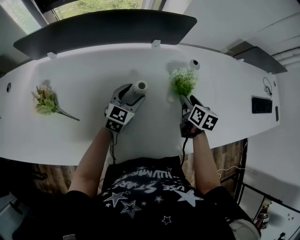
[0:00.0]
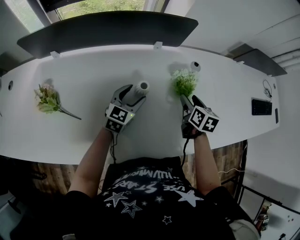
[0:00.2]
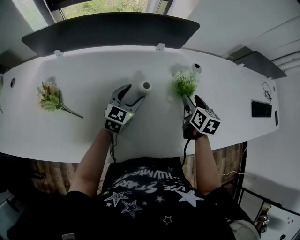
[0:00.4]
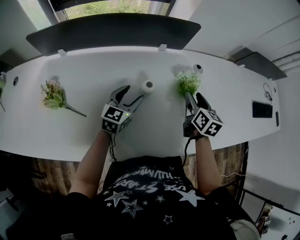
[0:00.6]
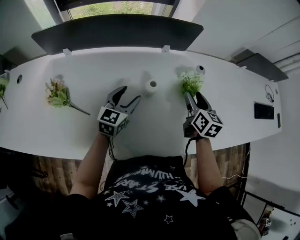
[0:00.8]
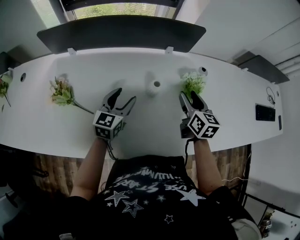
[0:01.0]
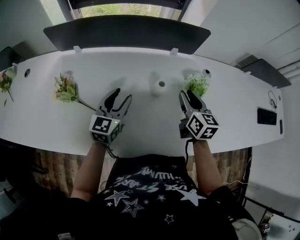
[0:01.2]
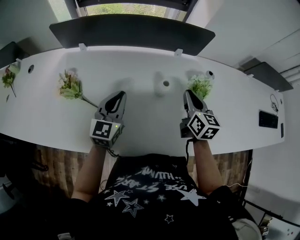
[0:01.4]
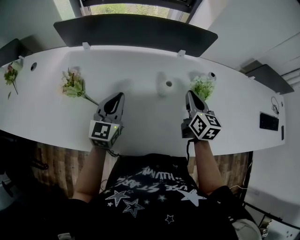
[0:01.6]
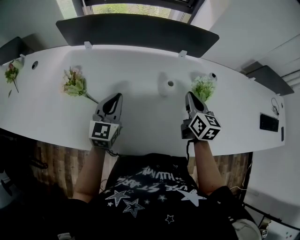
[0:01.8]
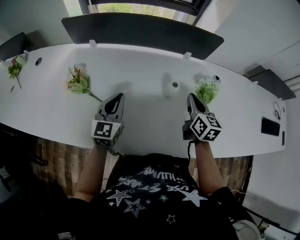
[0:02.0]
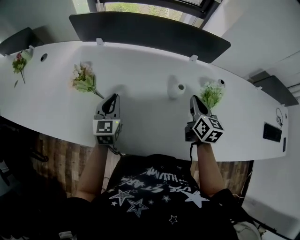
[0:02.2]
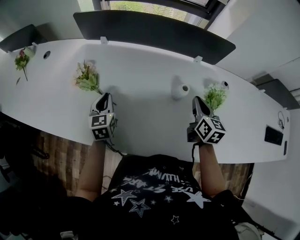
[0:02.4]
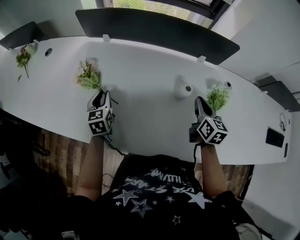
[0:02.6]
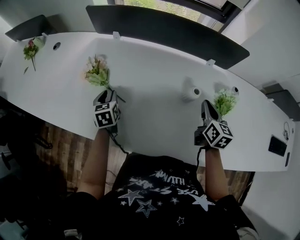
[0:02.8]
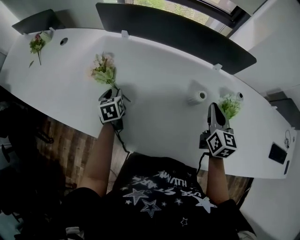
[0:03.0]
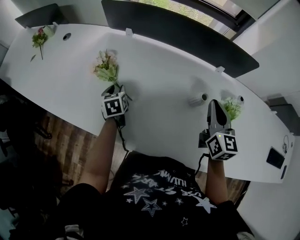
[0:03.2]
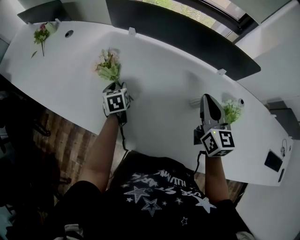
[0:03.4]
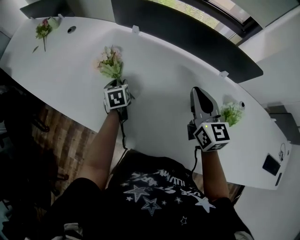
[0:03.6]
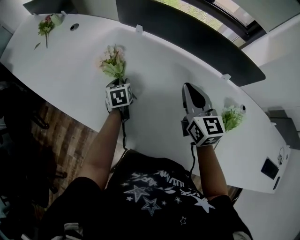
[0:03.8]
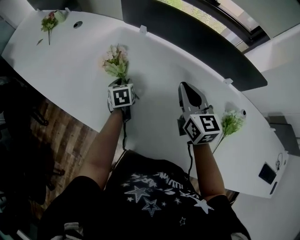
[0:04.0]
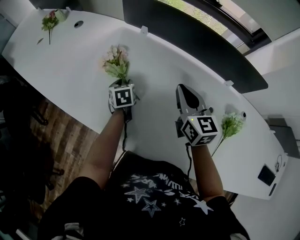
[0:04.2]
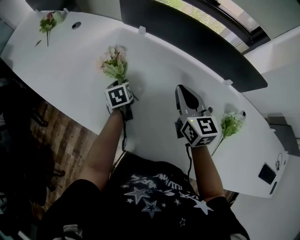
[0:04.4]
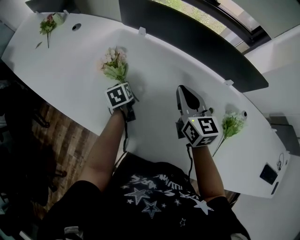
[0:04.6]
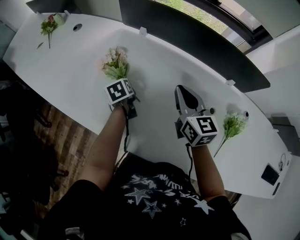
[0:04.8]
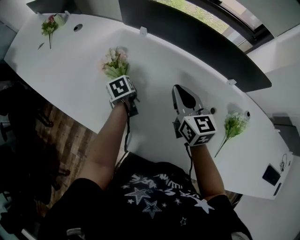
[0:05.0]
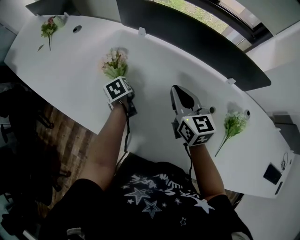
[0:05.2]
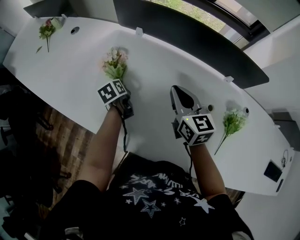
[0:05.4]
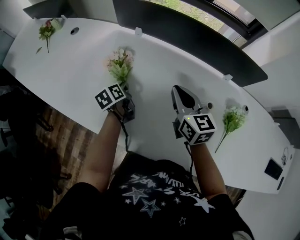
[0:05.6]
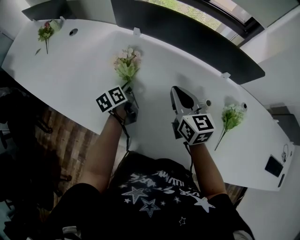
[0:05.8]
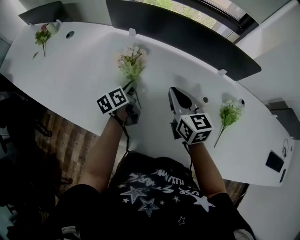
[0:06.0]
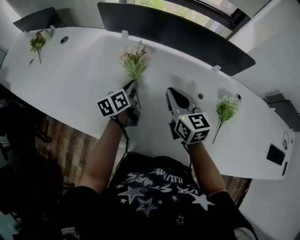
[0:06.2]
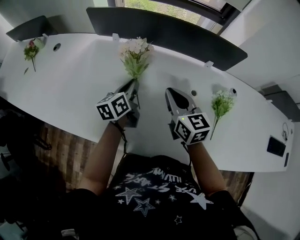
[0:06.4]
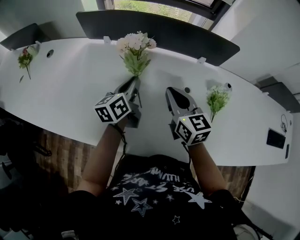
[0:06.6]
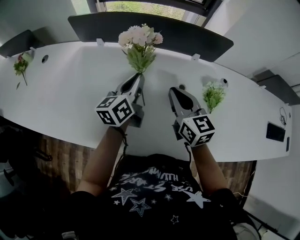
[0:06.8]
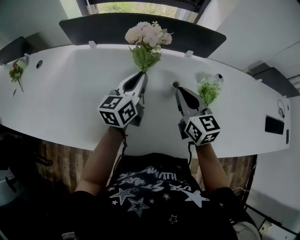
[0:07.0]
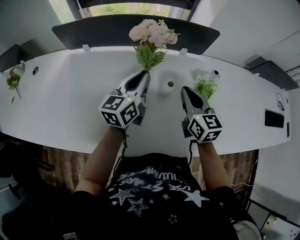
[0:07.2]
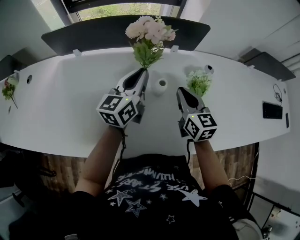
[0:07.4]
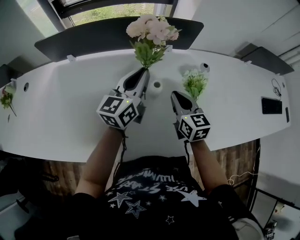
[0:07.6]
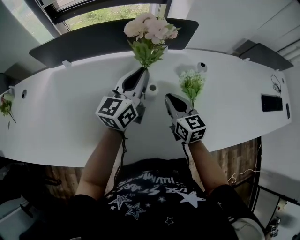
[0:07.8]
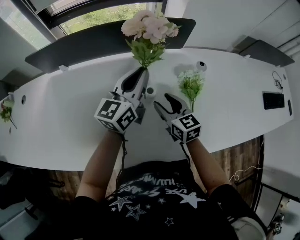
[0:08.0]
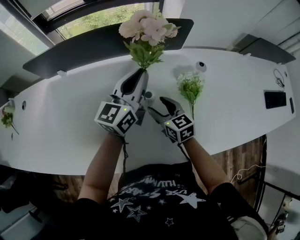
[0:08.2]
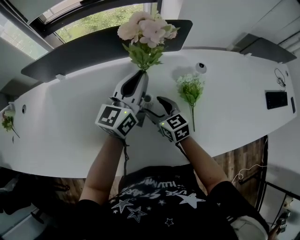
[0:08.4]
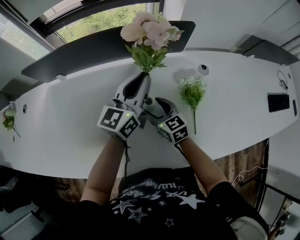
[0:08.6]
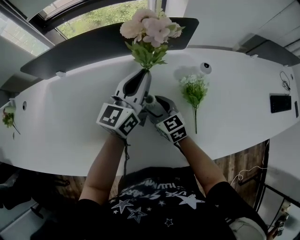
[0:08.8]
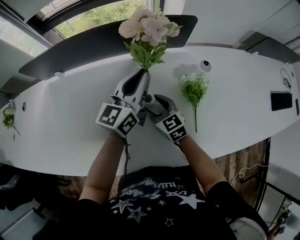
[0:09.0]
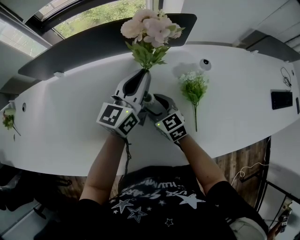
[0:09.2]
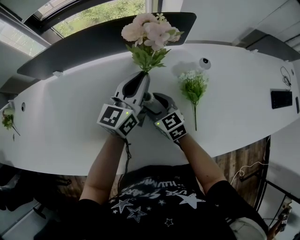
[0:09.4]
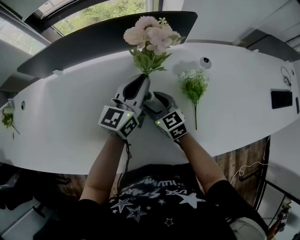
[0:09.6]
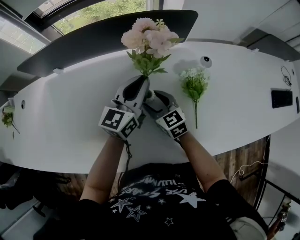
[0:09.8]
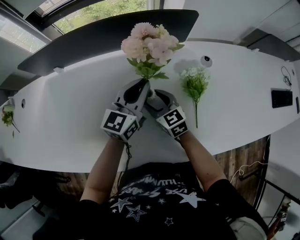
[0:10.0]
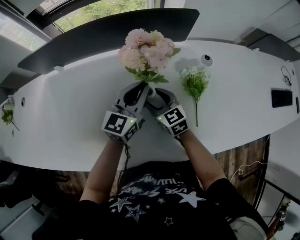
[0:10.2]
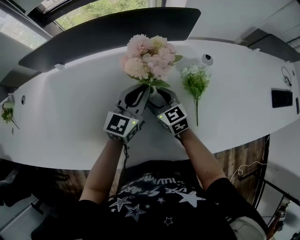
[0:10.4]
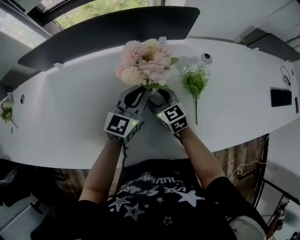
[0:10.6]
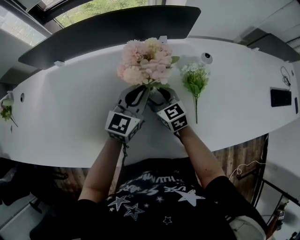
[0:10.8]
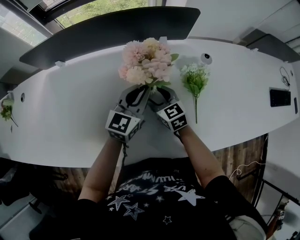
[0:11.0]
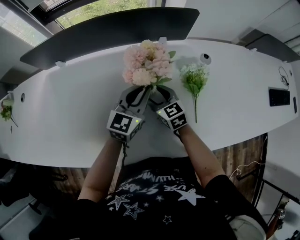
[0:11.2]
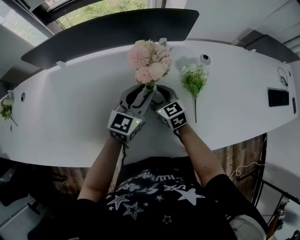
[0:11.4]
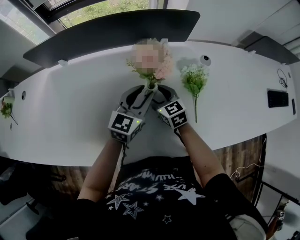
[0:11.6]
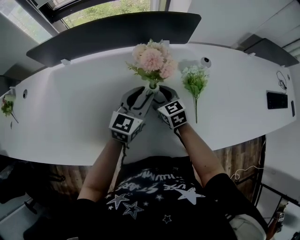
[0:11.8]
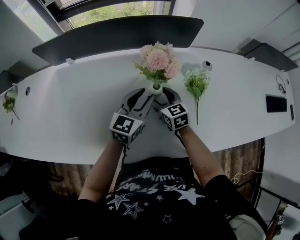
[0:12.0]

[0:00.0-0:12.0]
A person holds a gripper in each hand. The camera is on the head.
0:00.0 to 0:01.6: The right gripper heads to the left and upward, covering approximately 15 cm, swivels some 30 degrees, and closes up, while the left gripper moves to the left, upward and backward, approximately 25 cm, turns by roughly 30 degrees, and closes its fingers.
0:01.6 to 0:03.0: The left gripper travels to the left and downward by roughly 25 cm, tilts its fingers some 30 degrees downward, and opens up.
0:03.0 to 0:04.4: The right gripper shifts approximately 20 cm to the left and forward, and changes its angle by roughly 30 degrees.
0:04.4 to 0:06.0: The left gripper is displaced to the right and upward by roughly 10 cm, and turns by about 40 degrees.
0:06.0 to 0:07.6: The left gripper shifts by roughly 35 cm, and swivels approximately 60 degrees. Meanwhile the right gripper changes place by some 25 cm, and turns by some 30 degrees.
0:07.6 to 0:09.0: The right gripper is displaced downward and to the left by about 15 cm, turns by about 20 degrees, and opens its fingers; the left gripper shifts by about 5 cm.
0:09.0 to 0:10.4: The left gripper shifts approximately 10 cm downward and backward.
0:10.4 to 0:12.0: There are only small adjustments of the grippers.

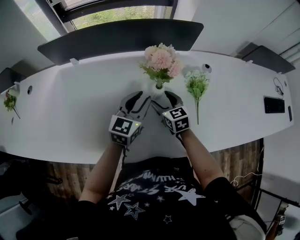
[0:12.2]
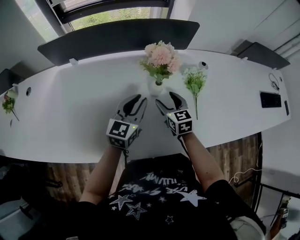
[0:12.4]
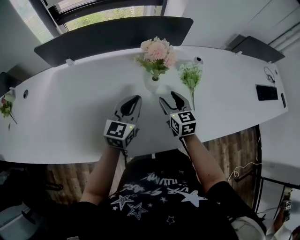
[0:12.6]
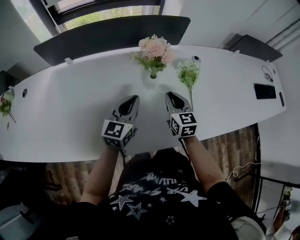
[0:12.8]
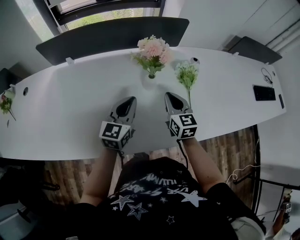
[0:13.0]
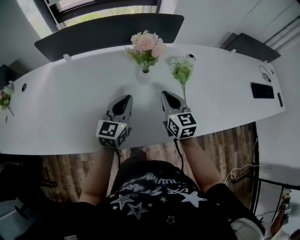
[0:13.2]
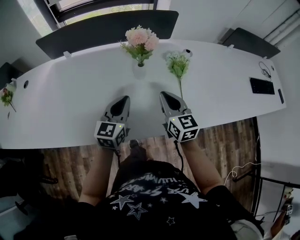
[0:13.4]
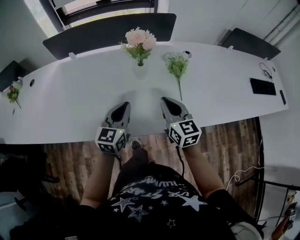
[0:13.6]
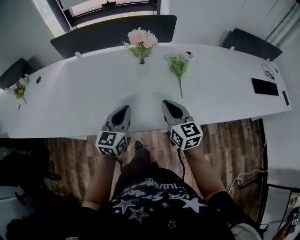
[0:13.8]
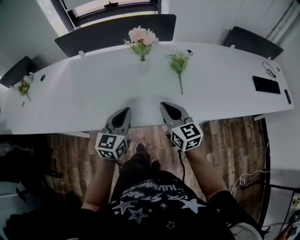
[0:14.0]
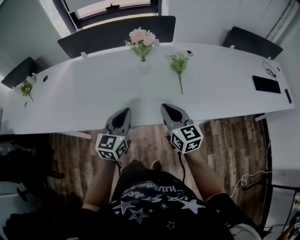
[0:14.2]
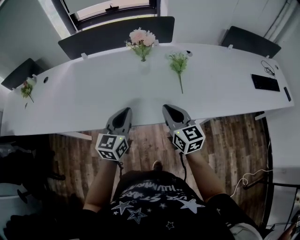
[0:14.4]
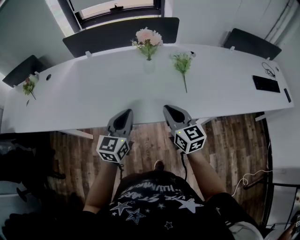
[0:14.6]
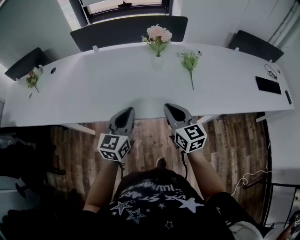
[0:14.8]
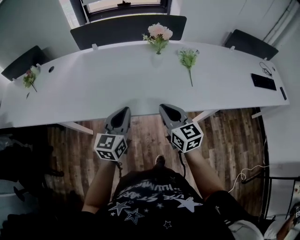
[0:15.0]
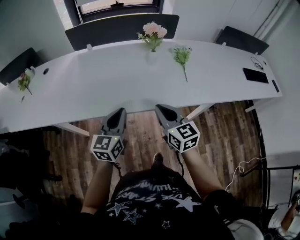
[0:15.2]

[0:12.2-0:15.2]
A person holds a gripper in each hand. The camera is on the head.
0:12.2 to 0:13.8: The left gripper goes approximately 20 cm backward. Meanwhile the right gripper travels backward, upward and to the right by roughly 25 cm, changes its angle by approximately 20 degrees, and closes its fingers.
0:13.8 to 0:15.2: Both grippers travel together to the left and backward, approximately 20 cm.

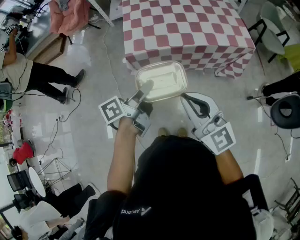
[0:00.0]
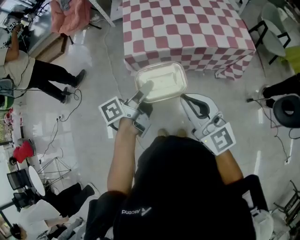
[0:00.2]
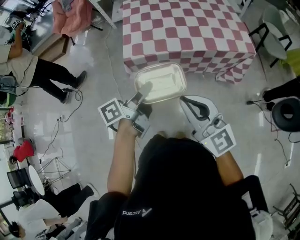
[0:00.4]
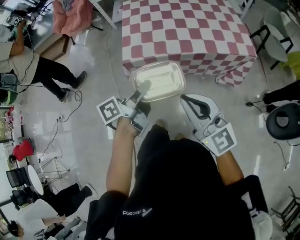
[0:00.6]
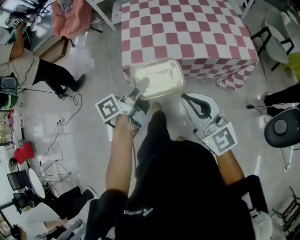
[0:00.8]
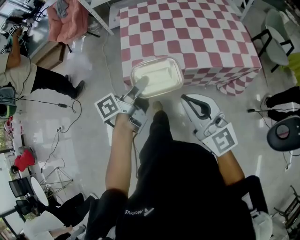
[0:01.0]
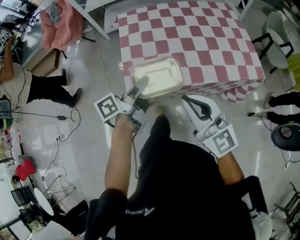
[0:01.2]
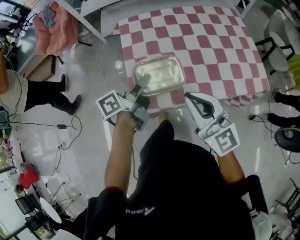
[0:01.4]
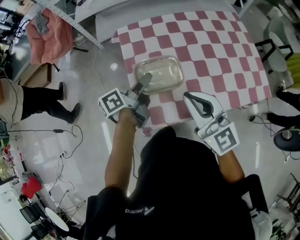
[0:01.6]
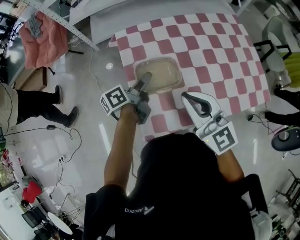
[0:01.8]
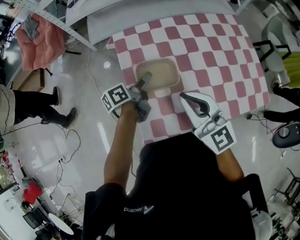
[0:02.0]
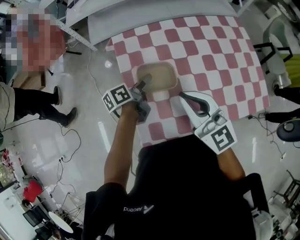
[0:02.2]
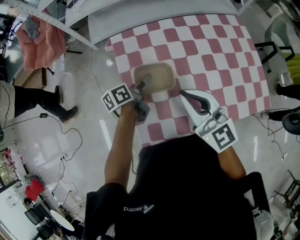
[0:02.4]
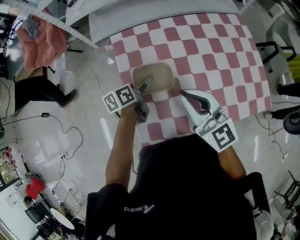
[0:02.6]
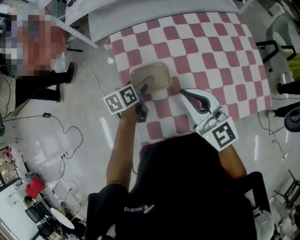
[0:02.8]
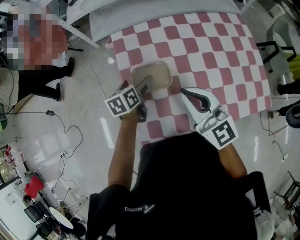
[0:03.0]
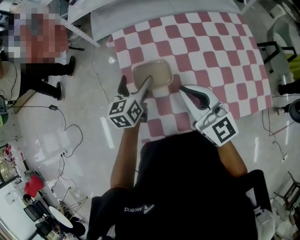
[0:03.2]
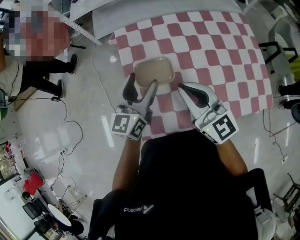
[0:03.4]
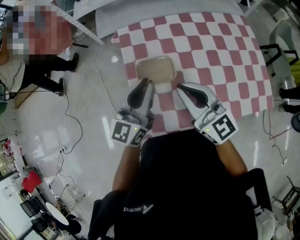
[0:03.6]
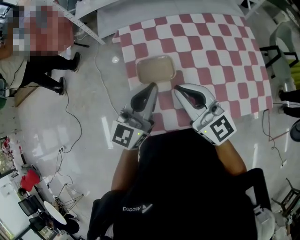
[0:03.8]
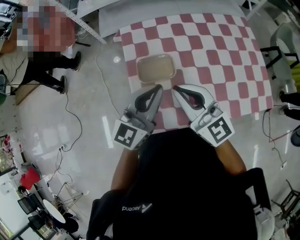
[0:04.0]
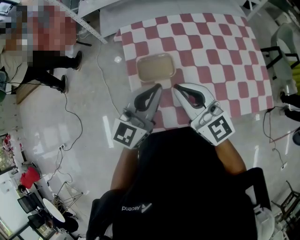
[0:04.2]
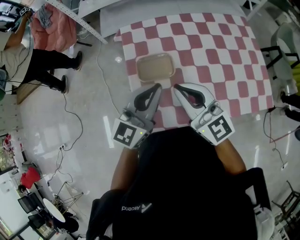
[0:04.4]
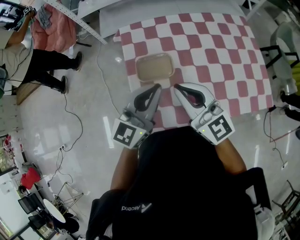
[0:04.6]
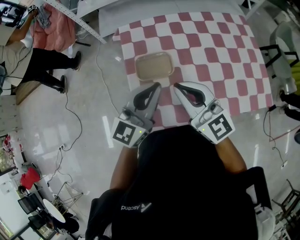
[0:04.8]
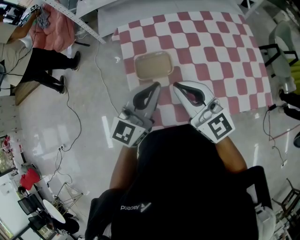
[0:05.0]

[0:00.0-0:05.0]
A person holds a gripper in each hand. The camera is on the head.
0:00.0 to 0:01.6: The two grippers travel together, forward, about 50 cm.
0:01.6 to 0:03.4: The right gripper goes about 10 cm forward; the left gripper moves approximately 10 cm downward and comes back, and rotates around the line of its fingers by roughly 50 degrees, clockwise from behind.
0:03.4 to 0:05.0: The left gripper travels backward and upward by roughly 10 cm, turns by about 20 degrees, and closes.

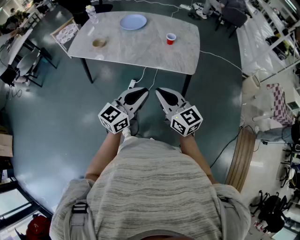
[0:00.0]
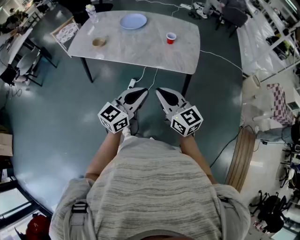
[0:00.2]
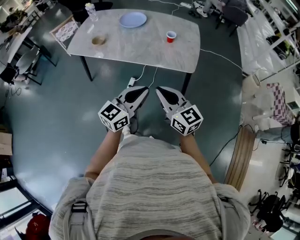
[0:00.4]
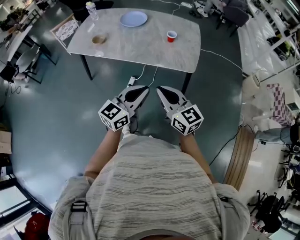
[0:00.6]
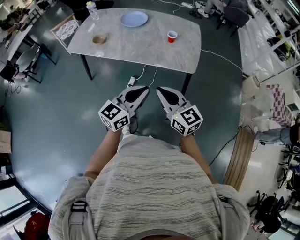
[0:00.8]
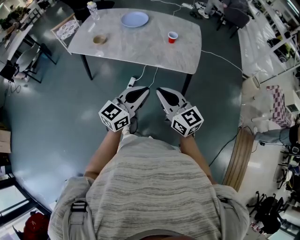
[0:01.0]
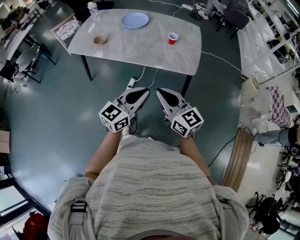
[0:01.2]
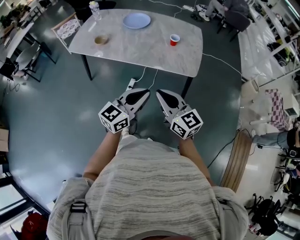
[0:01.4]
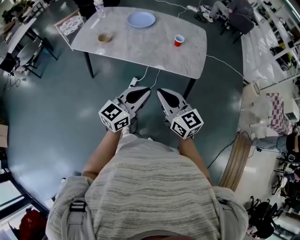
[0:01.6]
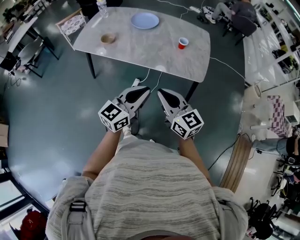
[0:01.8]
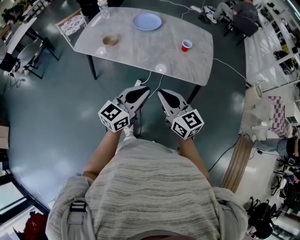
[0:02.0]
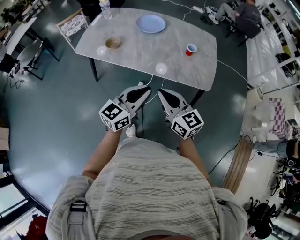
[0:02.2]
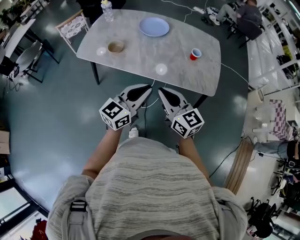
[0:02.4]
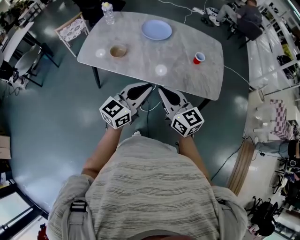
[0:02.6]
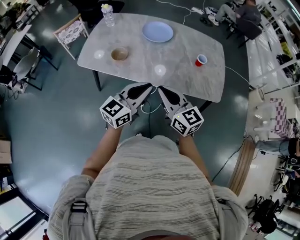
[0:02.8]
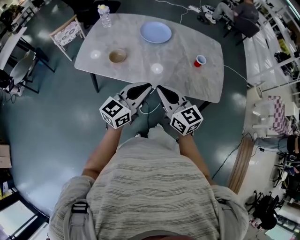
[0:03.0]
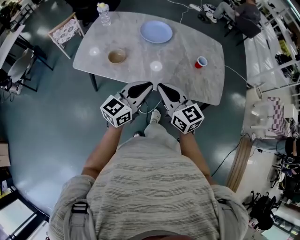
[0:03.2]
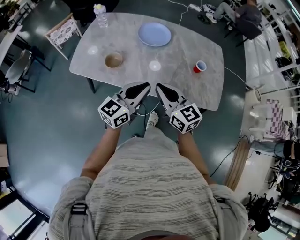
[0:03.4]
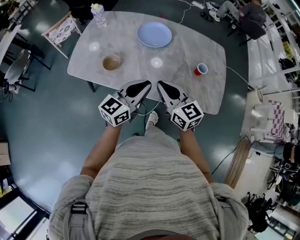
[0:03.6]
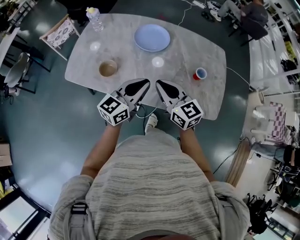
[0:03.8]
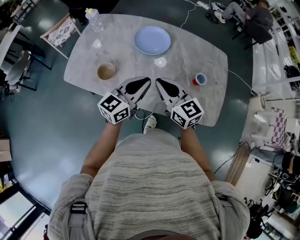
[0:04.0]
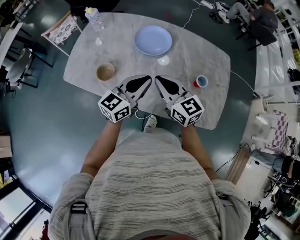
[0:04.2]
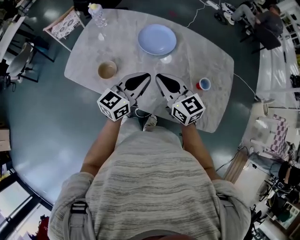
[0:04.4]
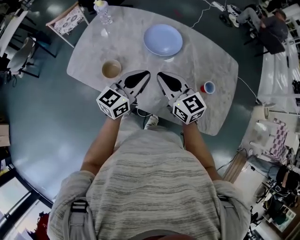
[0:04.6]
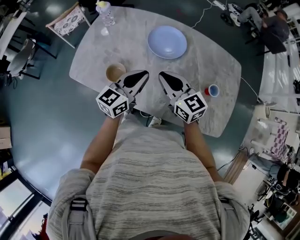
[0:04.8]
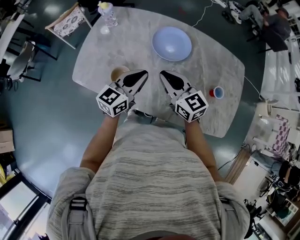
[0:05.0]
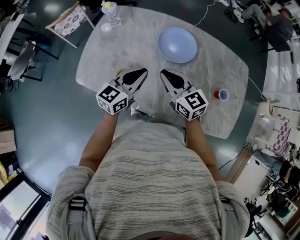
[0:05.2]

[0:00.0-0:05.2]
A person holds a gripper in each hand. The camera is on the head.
0:00.0 to 0:01.8: Both grippers travel together to the left, some 5 cm.
0:01.8 to 0:03.4: Both grippers travel together forward and to the left, some 30 cm.
0:03.4 to 0:05.2: The two grippers go some 25 cm forward.
